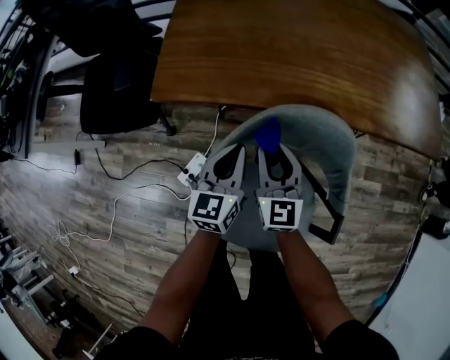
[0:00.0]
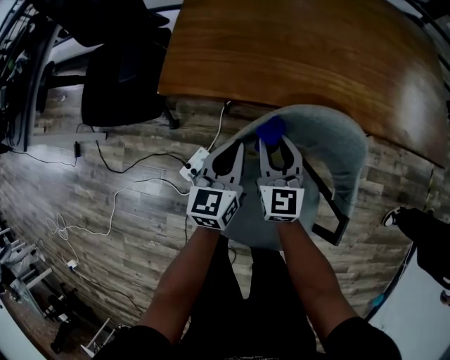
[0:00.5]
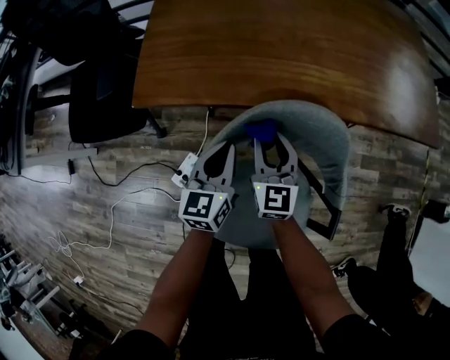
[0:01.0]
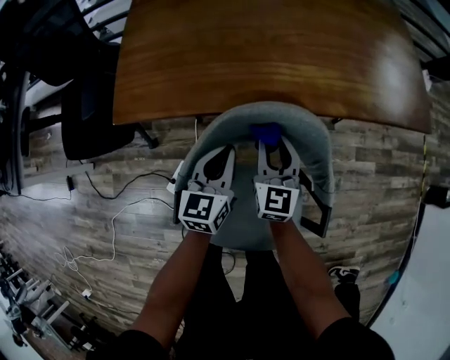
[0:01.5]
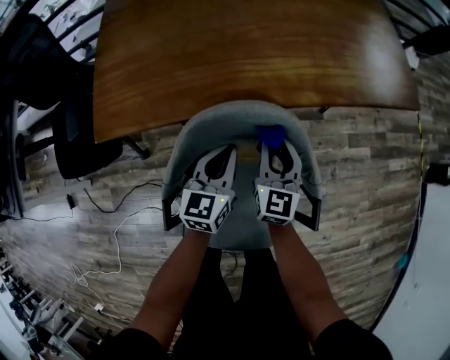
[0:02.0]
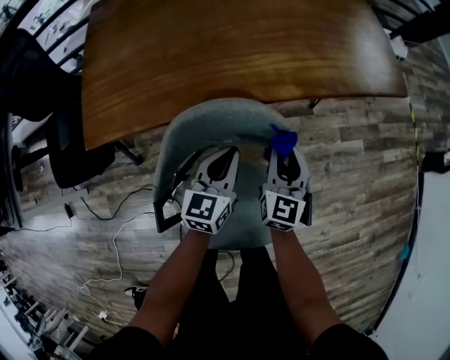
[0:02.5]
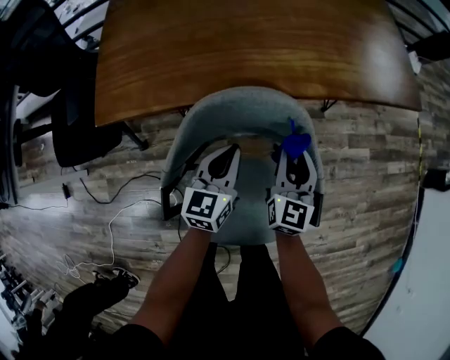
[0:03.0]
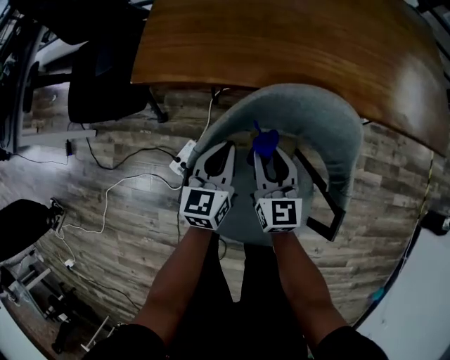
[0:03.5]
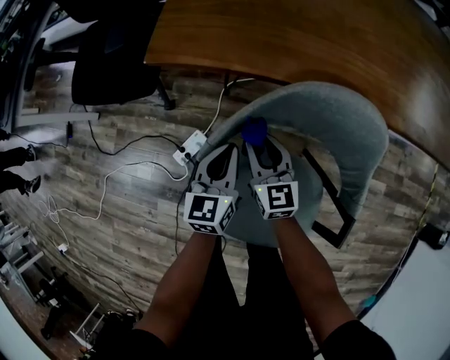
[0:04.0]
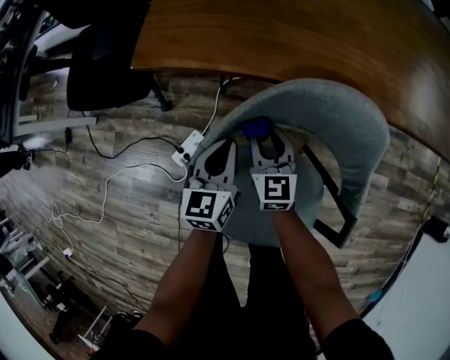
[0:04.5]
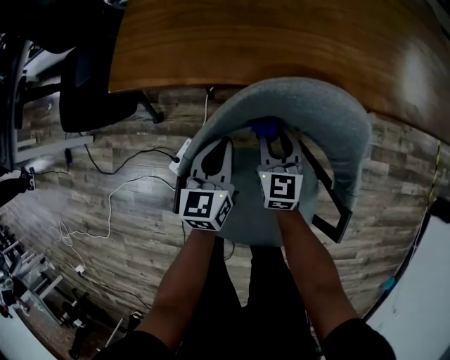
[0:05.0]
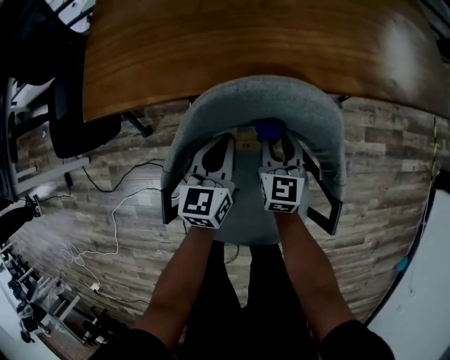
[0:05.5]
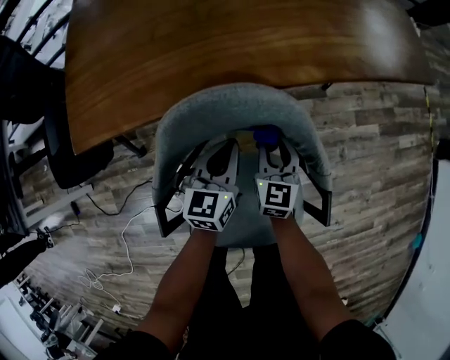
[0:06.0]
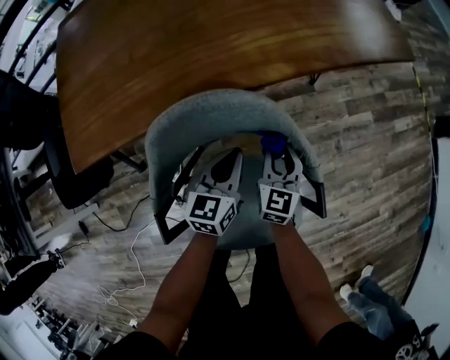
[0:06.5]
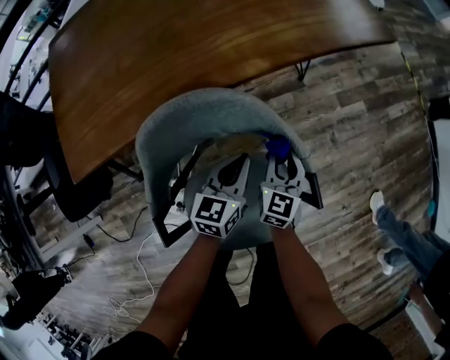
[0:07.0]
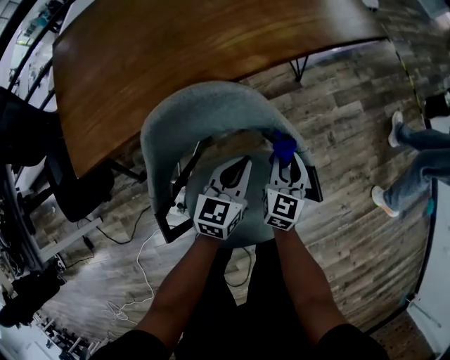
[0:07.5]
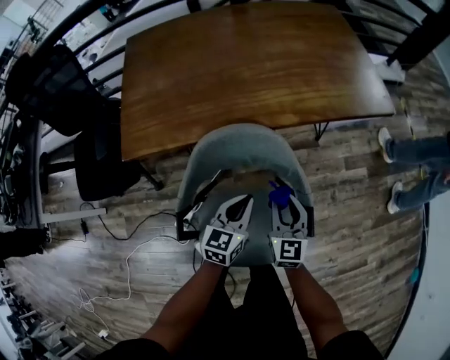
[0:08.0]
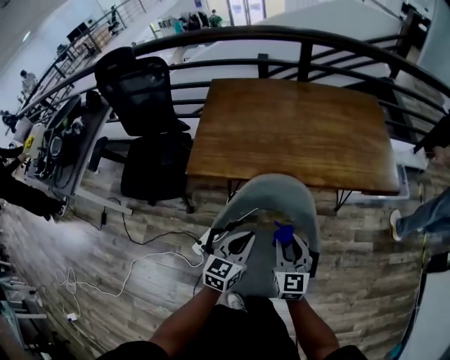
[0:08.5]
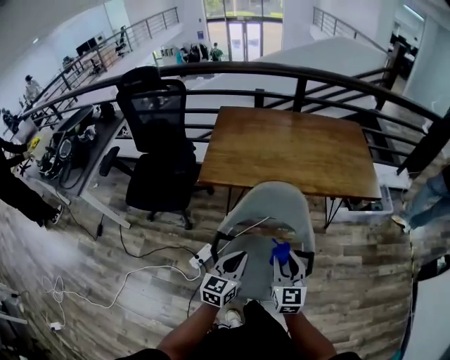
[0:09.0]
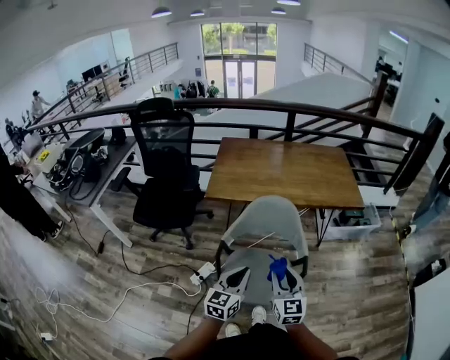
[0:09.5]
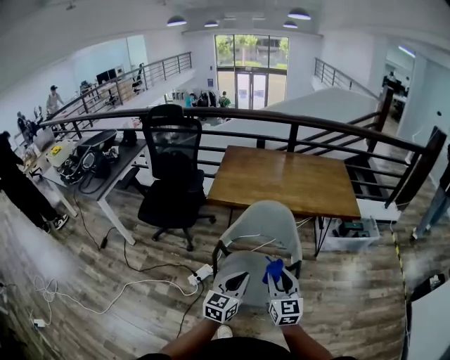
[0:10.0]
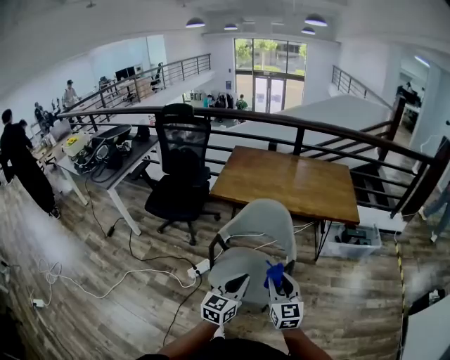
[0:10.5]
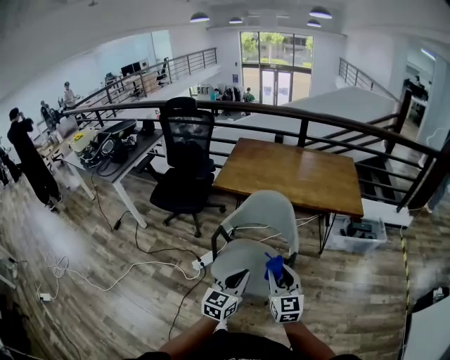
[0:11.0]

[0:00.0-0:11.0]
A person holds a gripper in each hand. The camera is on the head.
0:00.0 to 0:02.0: Both grippers move to the right, some 15 cm. The right gripper rotates roughly 20 degrees.
0:02.0 to 0:03.5: The left gripper changes place by about 15 cm. Meanwhile the right gripper moves about 15 cm, and swivels approximately 30 degrees.
0:03.5 to 0:05.5: The right gripper shifts some 15 cm to the right and downward, while the left gripper travels to the right by approximately 10 cm.
0:05.5 to 0:07.5: The left gripper changes place by some 15 cm, and rotates some 30 degrees. The right gripper shifts by roughly 20 cm, and changes its angle by some 30 degrees.
0:07.5 to 0:09.0: The right gripper is displaced upward by about 30 cm, and rotates roughly 50 degrees; the left gripper moves approximately 35 cm, and turns by about 30 degrees.
0:09.0 to 0:11.0: The two grippers go about 25 cm backward, to the right and upward.

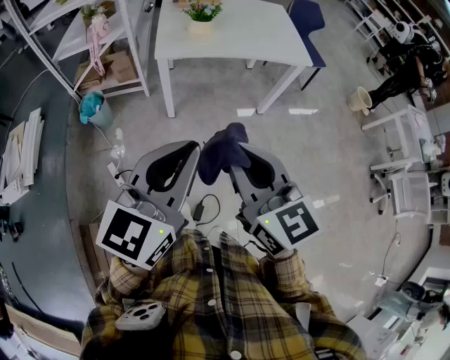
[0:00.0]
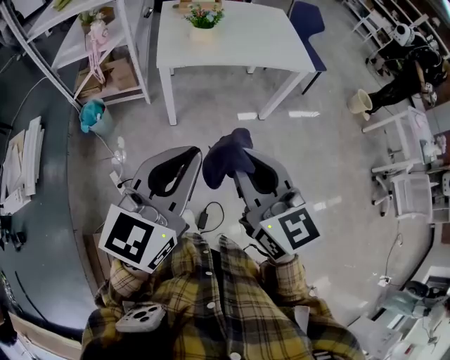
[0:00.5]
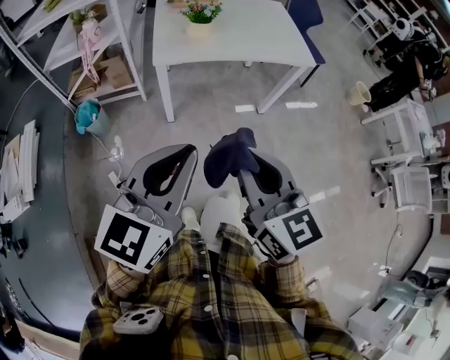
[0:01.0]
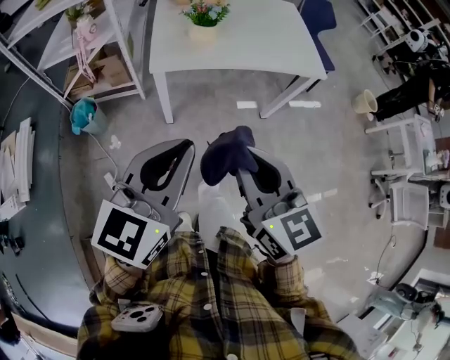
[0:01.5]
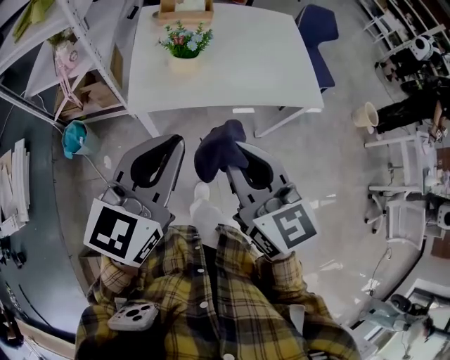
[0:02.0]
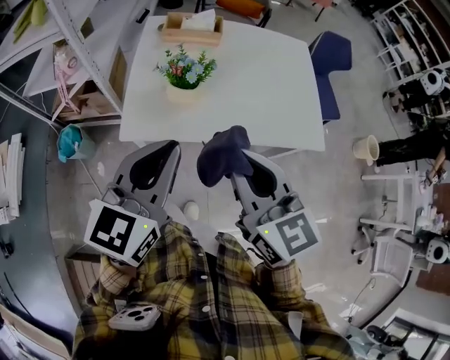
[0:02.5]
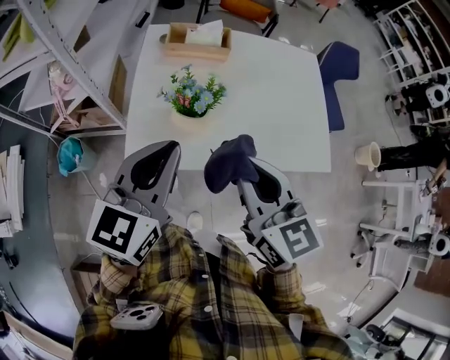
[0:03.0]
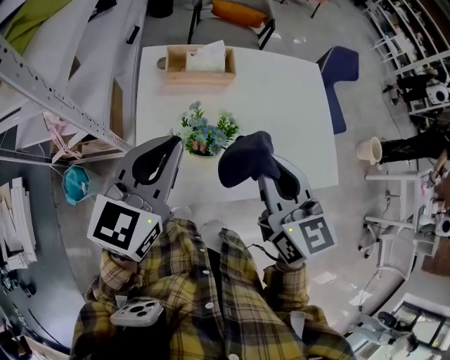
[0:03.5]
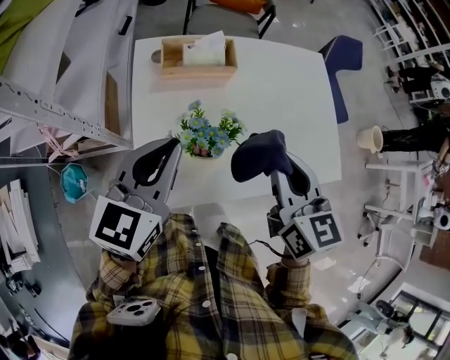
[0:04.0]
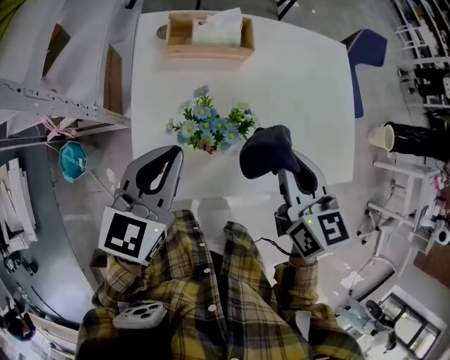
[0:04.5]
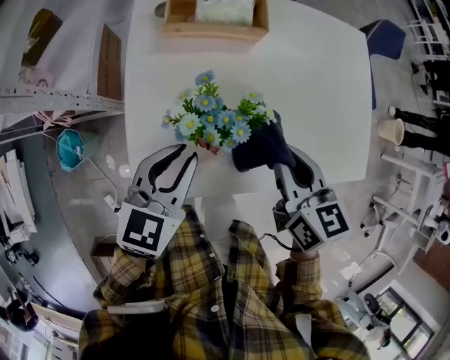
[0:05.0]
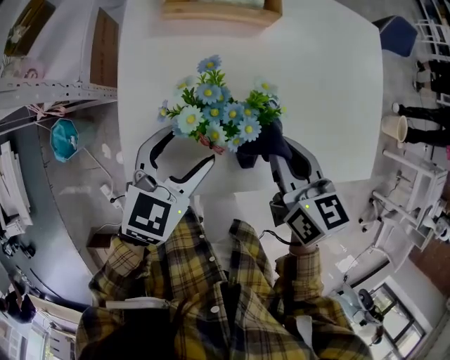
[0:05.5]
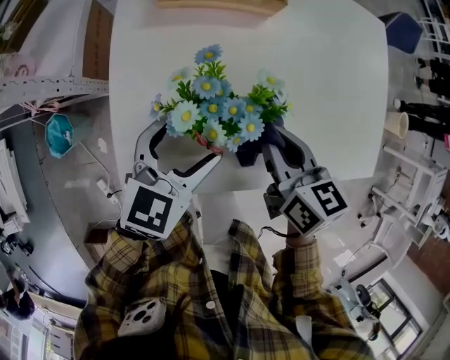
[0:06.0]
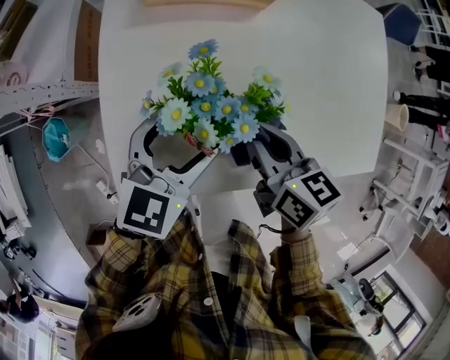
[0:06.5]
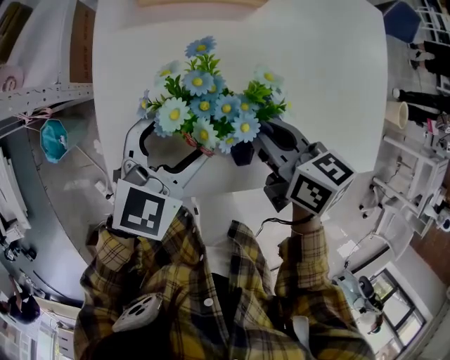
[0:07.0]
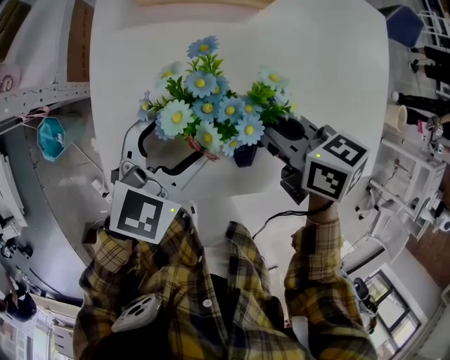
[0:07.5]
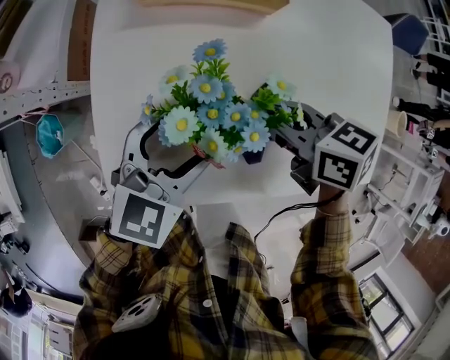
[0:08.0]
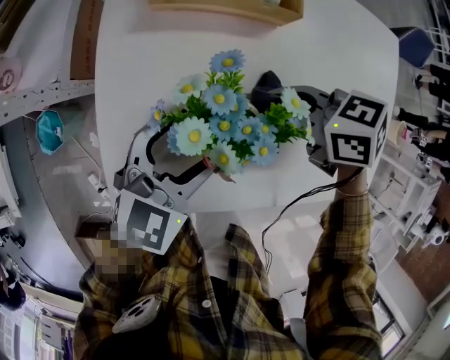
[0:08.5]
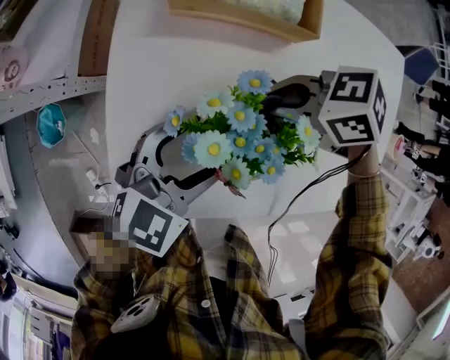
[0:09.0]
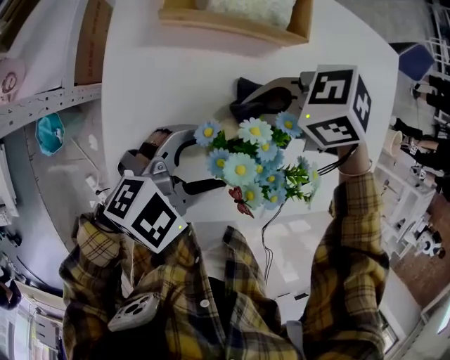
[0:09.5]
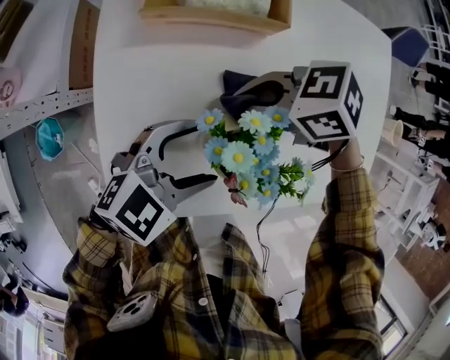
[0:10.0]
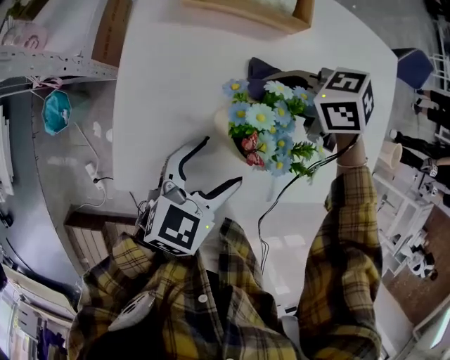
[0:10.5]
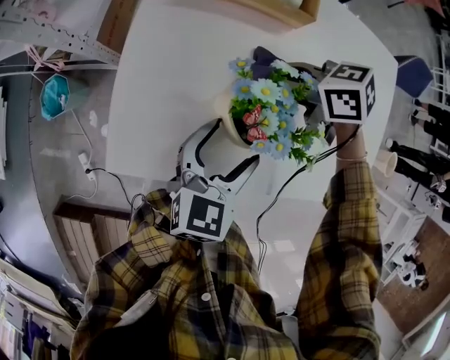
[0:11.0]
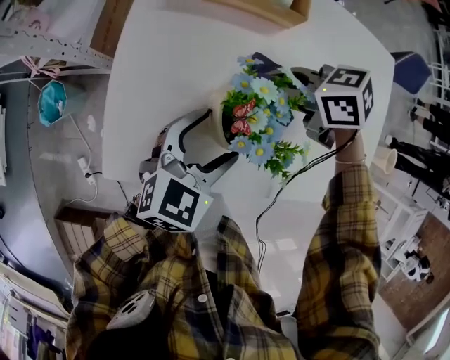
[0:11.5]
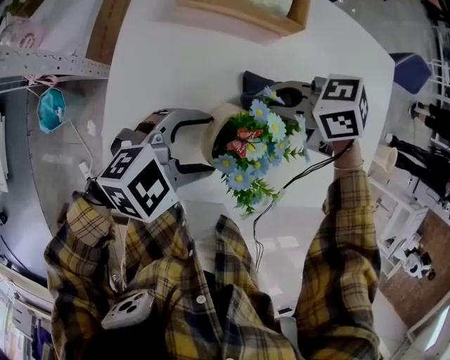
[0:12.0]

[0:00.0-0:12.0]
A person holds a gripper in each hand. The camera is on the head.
0:00.0 to 0:02.0: Both grippers move forward, approximately 30 cm.
0:02.0 to 0:04.0: Both grippers move forward, approximately 35 cm.
0:04.0 to 0:06.0: The two grippers go approximately 20 cm downward. The left gripper opens its fingers; the right gripper turns by about 20 degrees.
0:06.0 to 0:08.0: The right gripper changes its angle by approximately 30 degrees.
0:08.0 to 0:10.0: The left gripper turns by about 20 degrees; the right gripper changes place by approximately 5 cm, and rotates roughly 40 degrees.

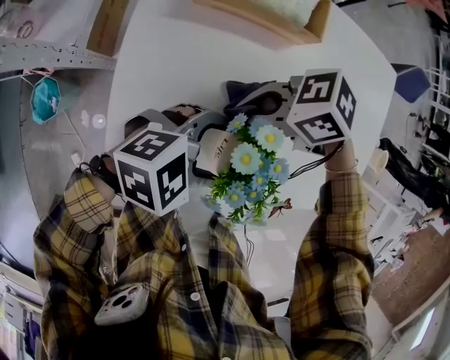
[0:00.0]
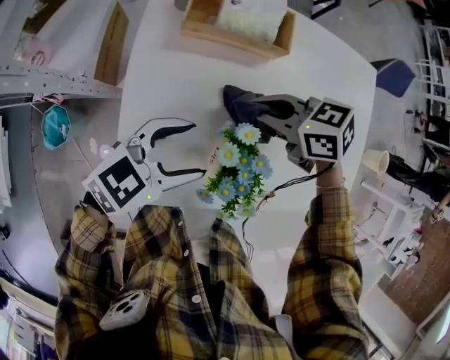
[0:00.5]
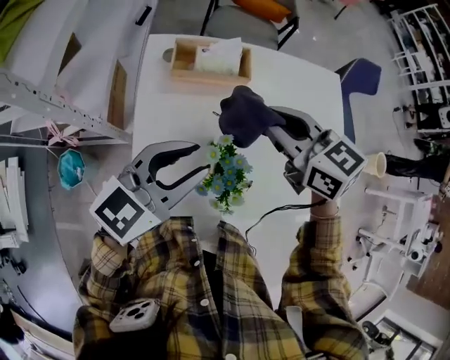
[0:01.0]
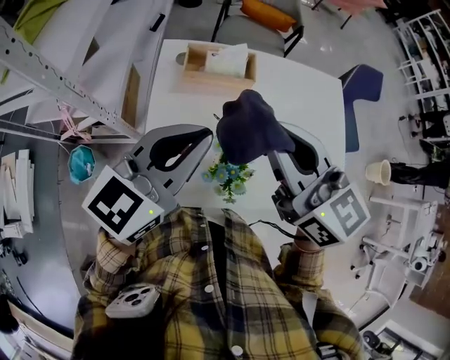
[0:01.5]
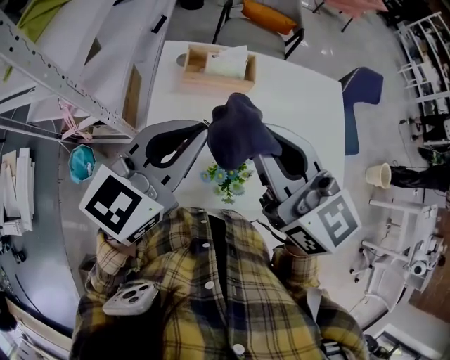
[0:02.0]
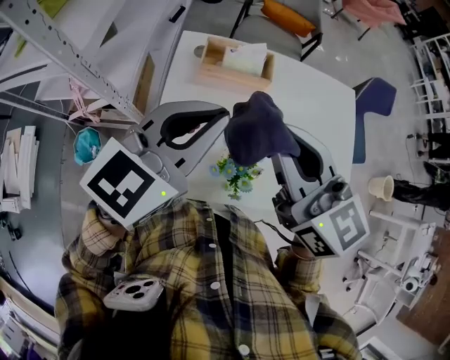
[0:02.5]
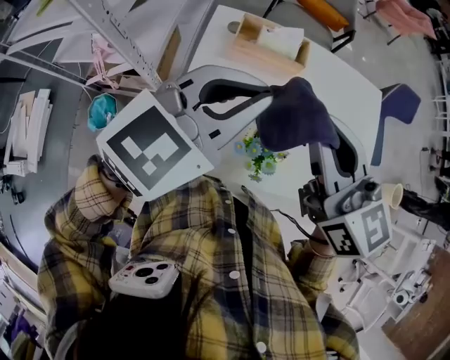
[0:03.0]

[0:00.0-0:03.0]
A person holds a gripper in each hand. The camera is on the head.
0:00.0 to 0:01.5: The grippers both shift upward by about 30 cm. The right gripper tilts its fingers roughly 30 degrees upward. The left gripper rotates roughly 50 degrees, and closes.
0:01.5 to 0:03.0: The grippers move only a little.

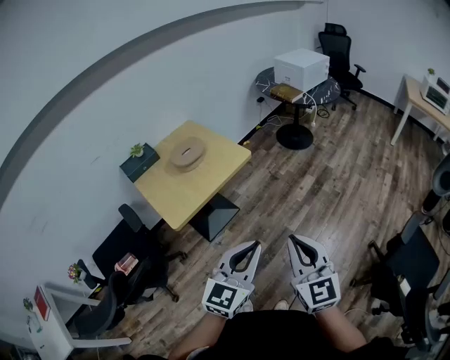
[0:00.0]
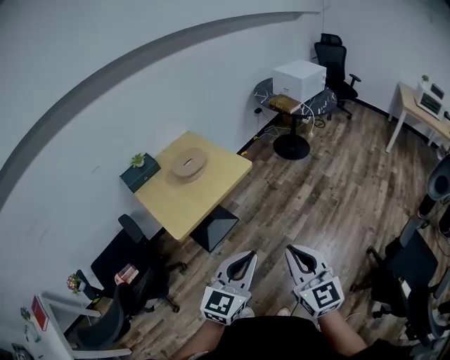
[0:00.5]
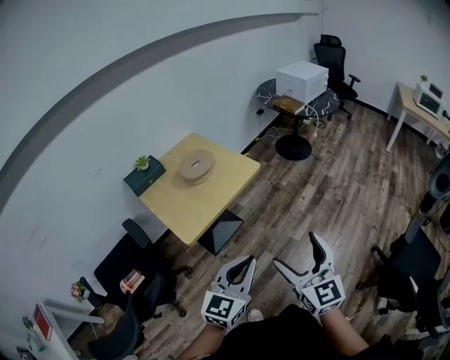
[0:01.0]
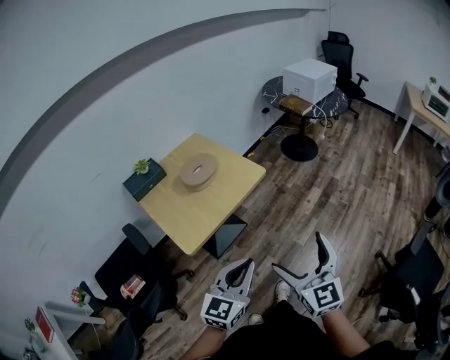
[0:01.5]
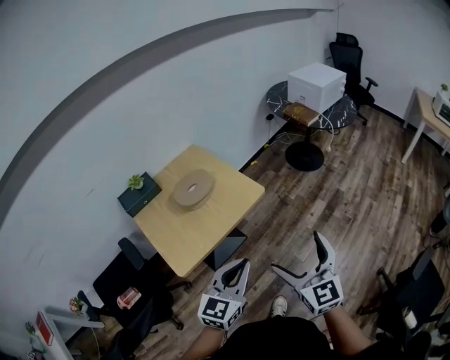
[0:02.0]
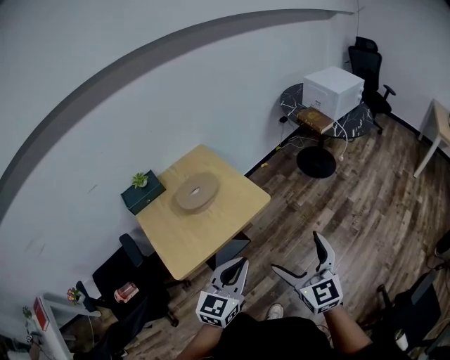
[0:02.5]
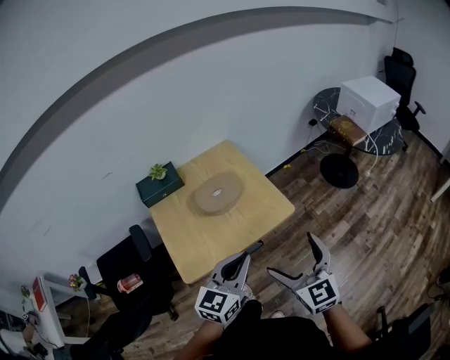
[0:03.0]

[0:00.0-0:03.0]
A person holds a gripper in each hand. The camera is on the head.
0:00.0 to 0:01.5: Both grippers move to the left and forward, roughly 15 cm. The right gripper opens its fingers.
0:01.5 to 0:03.0: Both grippers travel together forward, about 25 cm. The right gripper rotates roughly 20 degrees.
